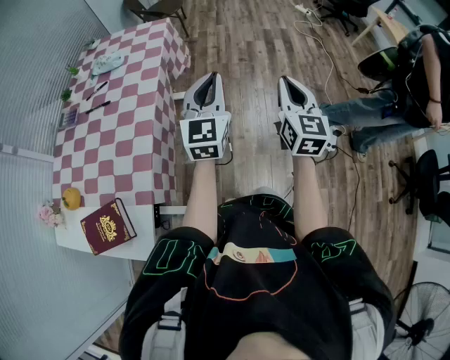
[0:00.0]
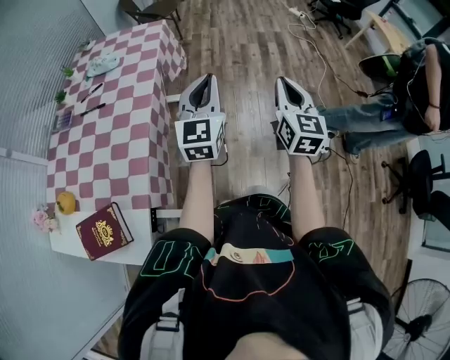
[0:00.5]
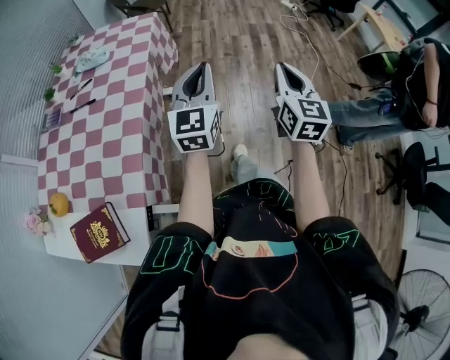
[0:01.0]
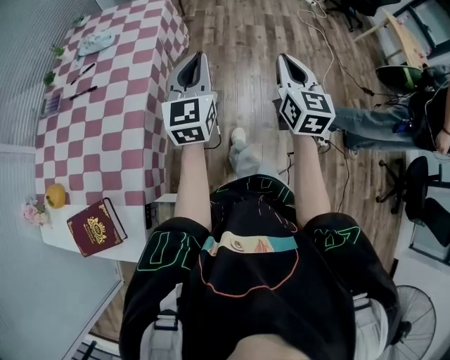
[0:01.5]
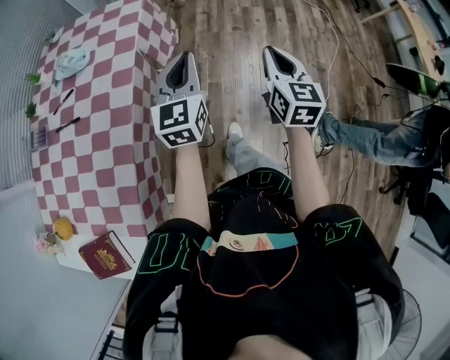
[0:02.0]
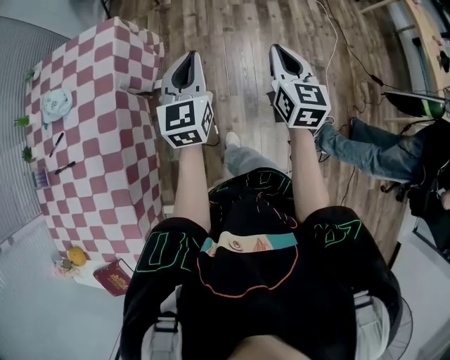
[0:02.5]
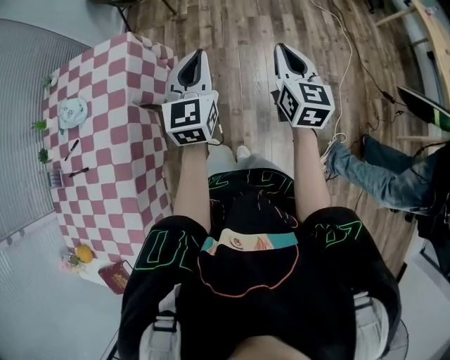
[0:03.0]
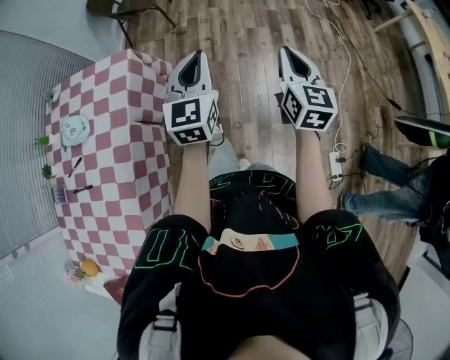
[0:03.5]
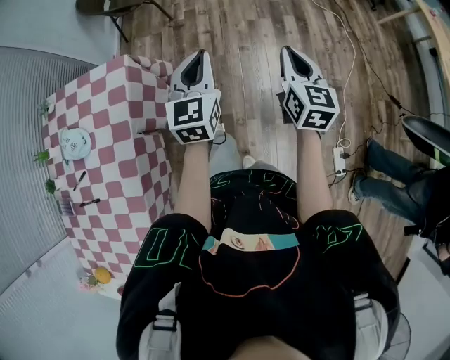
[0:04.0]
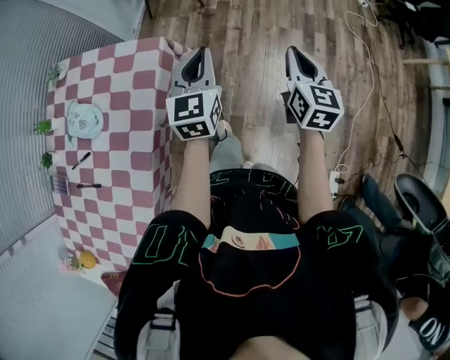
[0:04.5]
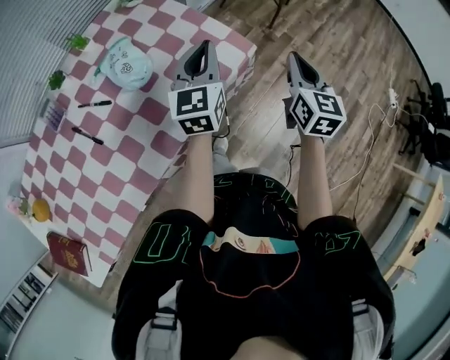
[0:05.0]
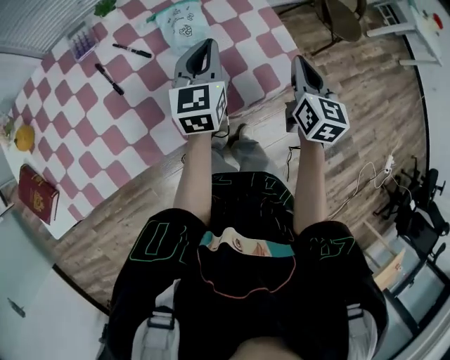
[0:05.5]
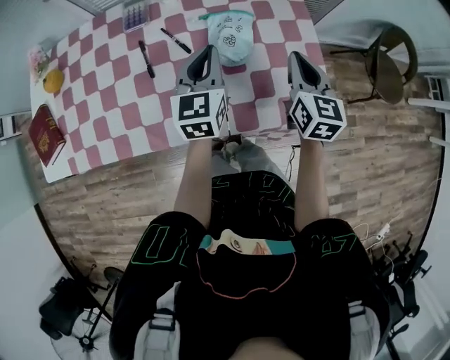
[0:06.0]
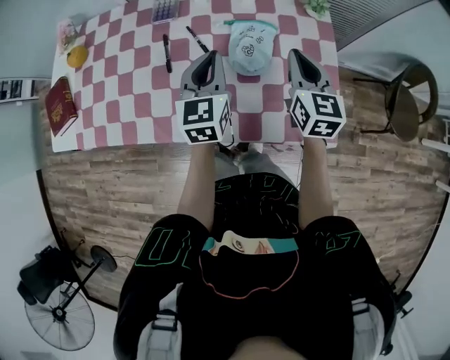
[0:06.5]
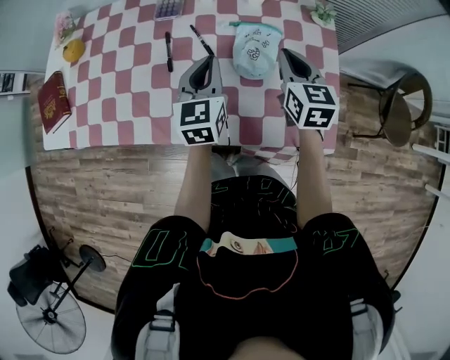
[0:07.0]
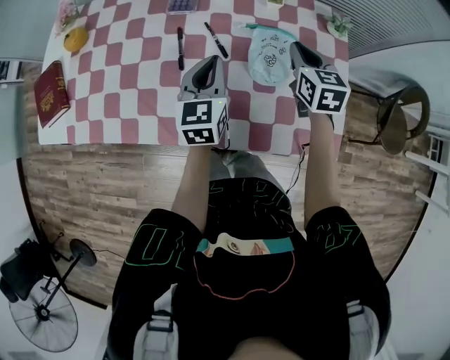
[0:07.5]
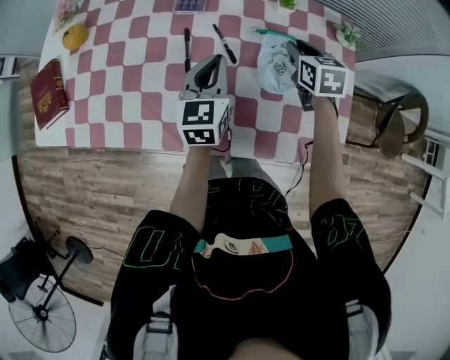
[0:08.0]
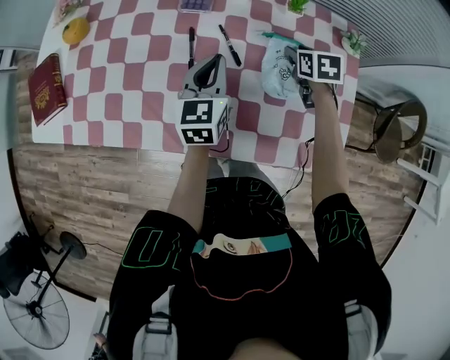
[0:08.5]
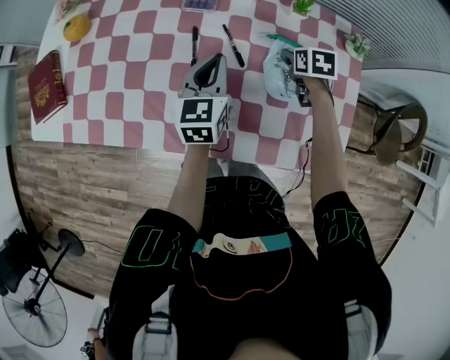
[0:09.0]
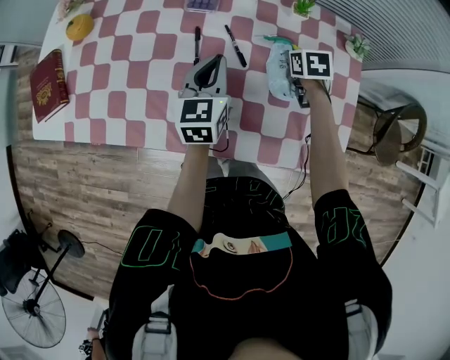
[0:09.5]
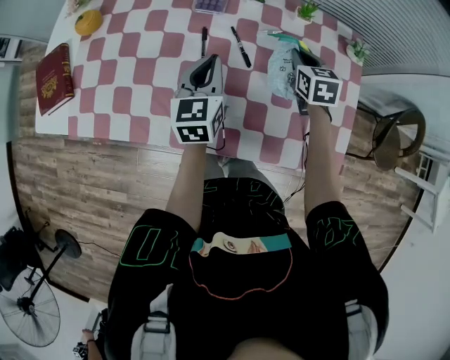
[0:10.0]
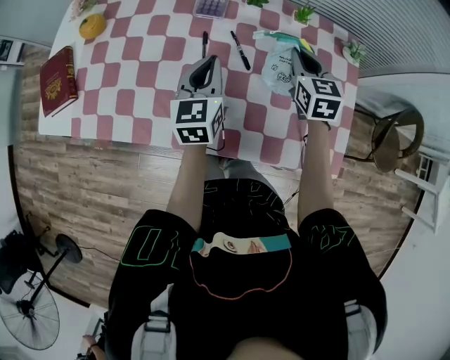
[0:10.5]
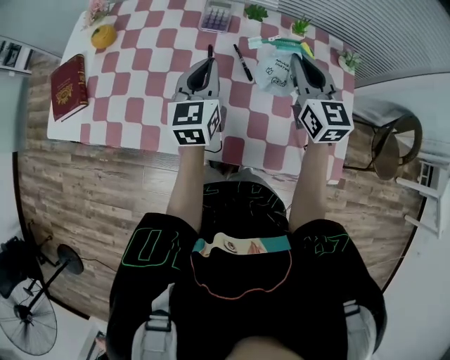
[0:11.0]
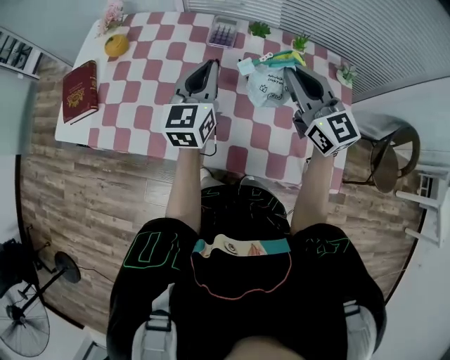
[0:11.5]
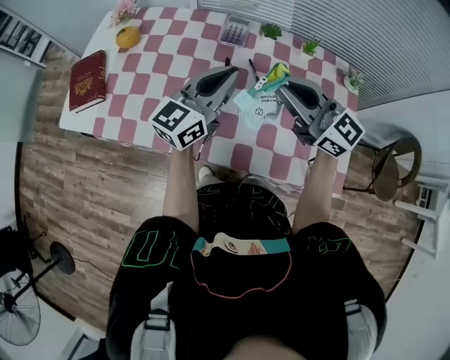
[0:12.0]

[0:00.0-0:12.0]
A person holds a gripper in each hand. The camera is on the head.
0:00.0 to 0:02.0: The right gripper goes roughly 20 cm forward, while the left gripper heads forward and downward, covering about 20 cm.
0:02.0 to 0:04.0: Both grippers travel together forward, approximately 30 cm.
0:04.0 to 0:06.0: The two grippers travel together, some 60 cm. The left gripper rotates about 80 degrees; the right gripper turns by roughly 80 degrees.
0:06.0 to 0:08.0: The right gripper shifts about 20 cm forward, to the left and downward, and swivels some 30 degrees. Meanwhile the left gripper moves to the left, some 10 cm.
0:08.0 to 0:10.0: The left gripper moves to the left, about 5 cm. Meanwhile the right gripper moves roughly 10 cm downward and comes back, and opens, then closes again.
0:10.0 to 0:12.0: The right gripper travels upward, to the left and backward by roughly 30 cm, and angles its fingers upward, by roughly 40 degrees. The left gripper is displaced upward by roughly 15 cm, and swivels roughly 40 degrees.

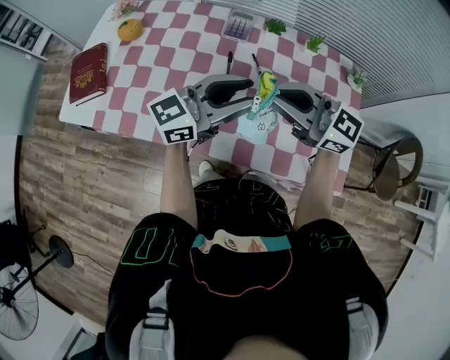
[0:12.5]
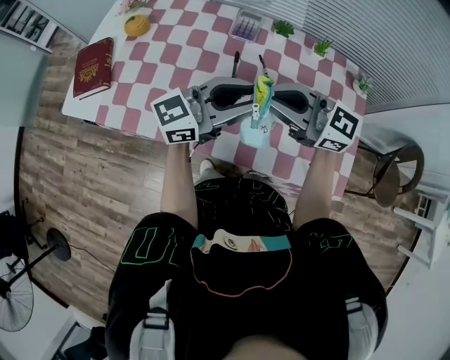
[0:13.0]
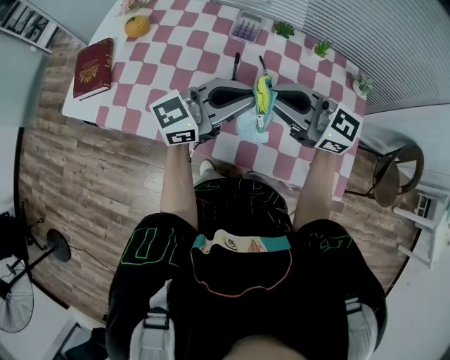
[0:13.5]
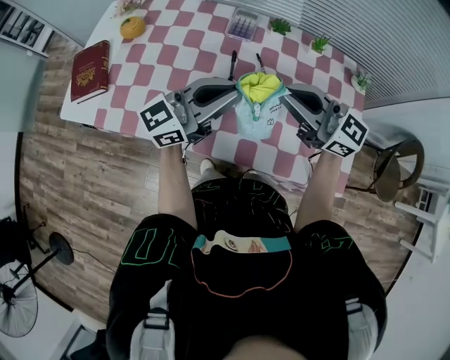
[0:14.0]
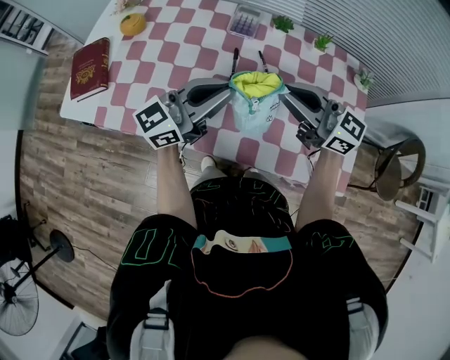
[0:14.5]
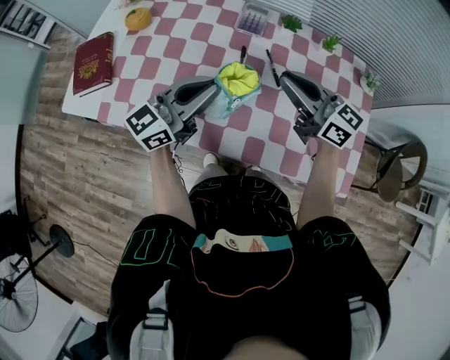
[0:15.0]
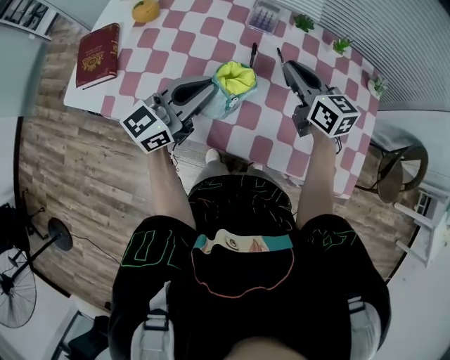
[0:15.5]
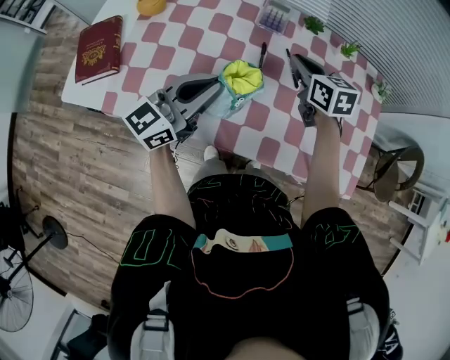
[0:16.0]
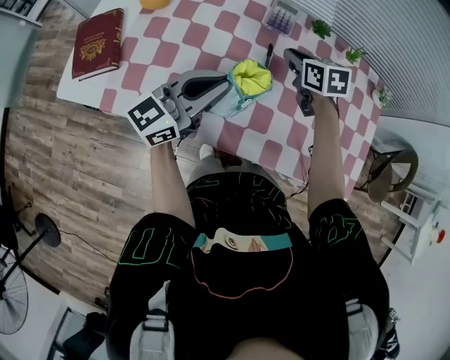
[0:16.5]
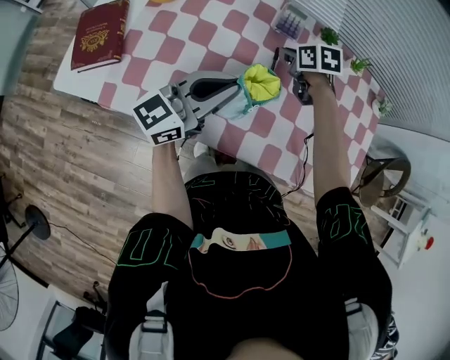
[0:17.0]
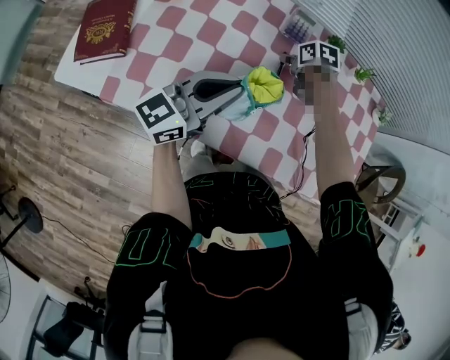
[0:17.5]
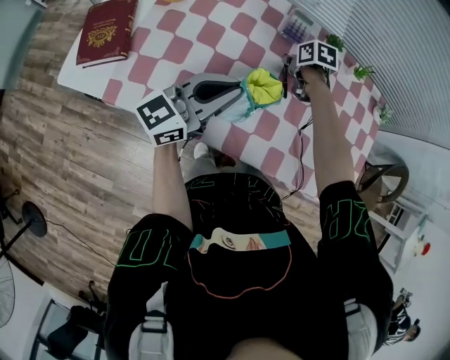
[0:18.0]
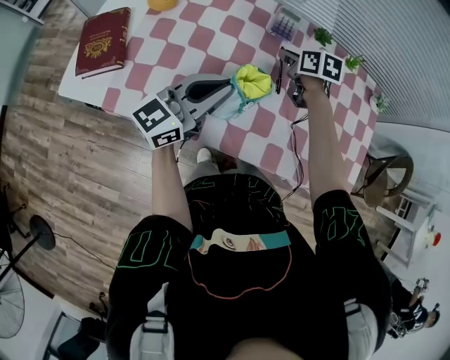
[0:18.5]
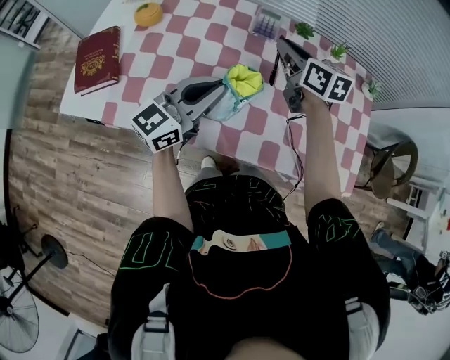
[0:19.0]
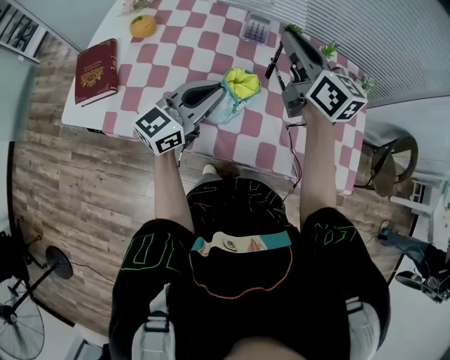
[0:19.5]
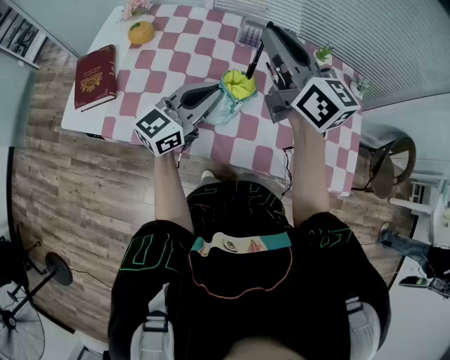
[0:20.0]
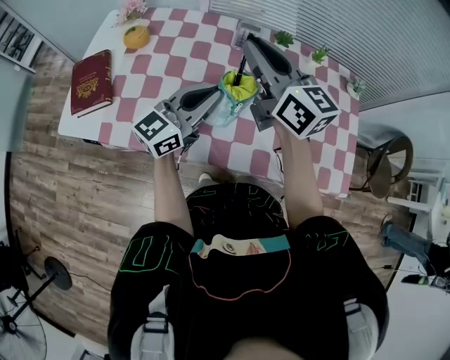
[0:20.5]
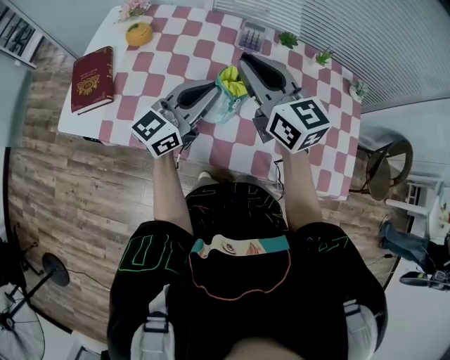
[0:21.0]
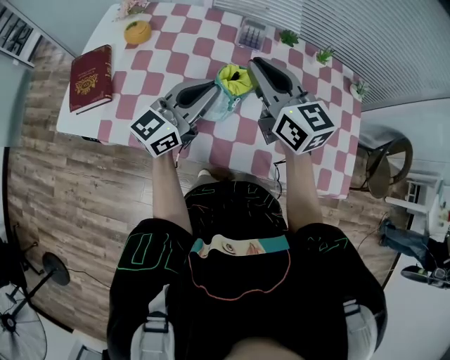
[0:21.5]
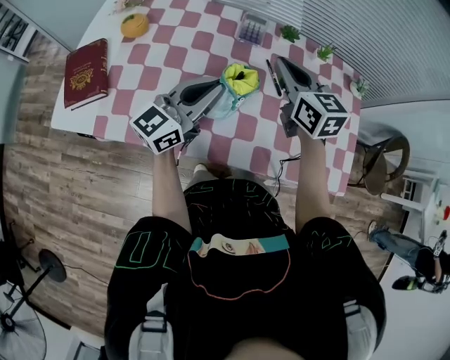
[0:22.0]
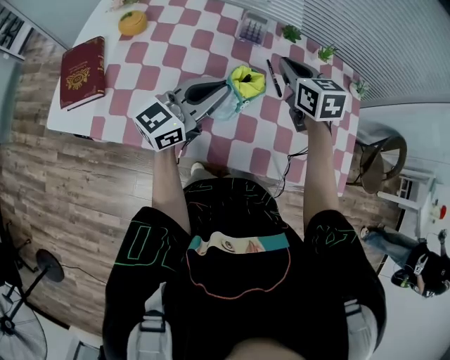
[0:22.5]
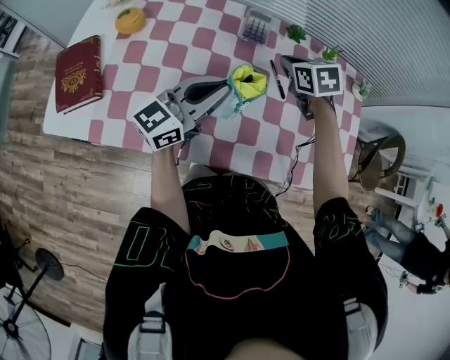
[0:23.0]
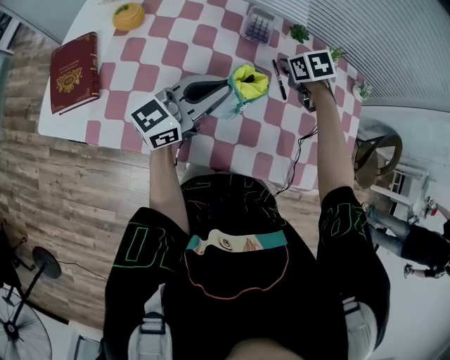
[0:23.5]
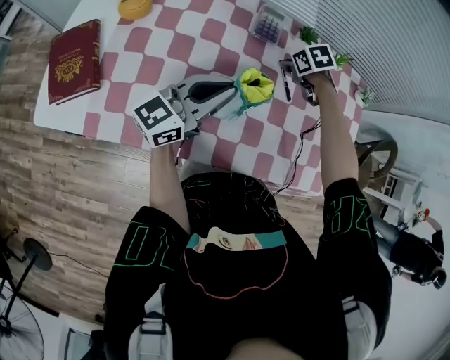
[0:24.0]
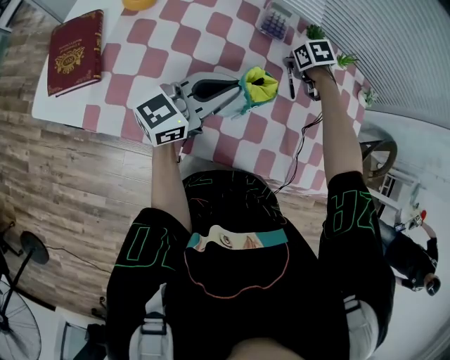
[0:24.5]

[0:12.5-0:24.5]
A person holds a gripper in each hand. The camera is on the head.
0:12.5 to 0:14.5: The left gripper moves some 5 cm, and closes its fingers.
0:14.5 to 0:16.5: The left gripper is displaced to the left by approximately 10 cm; the right gripper travels forward, downward and to the left by approximately 25 cm, and points its fingers approximately 50 degrees further downward.
0:16.5 to 0:18.5: The right gripper reaches some 10 cm downward, then returns.
0:18.5 to 0:20.5: The right gripper goes some 25 cm upward and backward, and tips its fingers upward by some 50 degrees.
0:20.5 to 0:22.5: The right gripper shifts about 15 cm downward, to the right and forward, and tilts its fingers some 40 degrees downward.
0:22.5 to 0:24.5: The right gripper moves downward, about 20 cm, and tips its fingers downward by roughly 40 degrees.

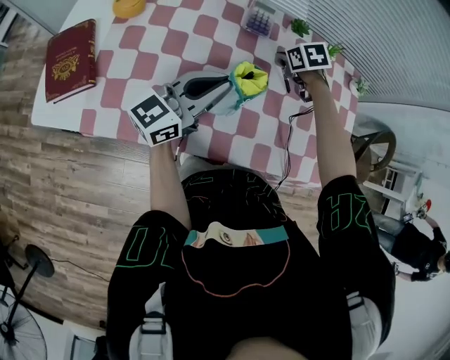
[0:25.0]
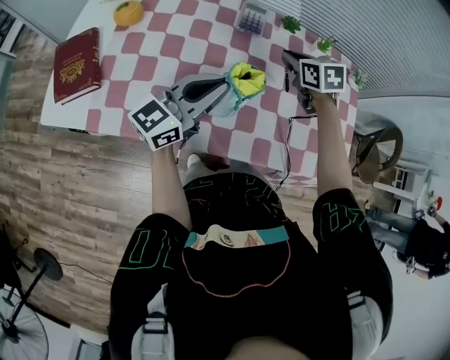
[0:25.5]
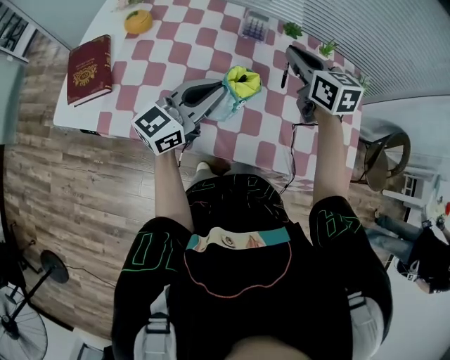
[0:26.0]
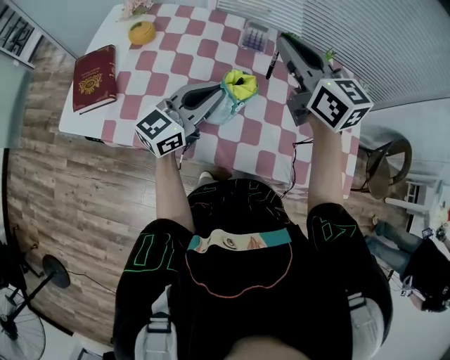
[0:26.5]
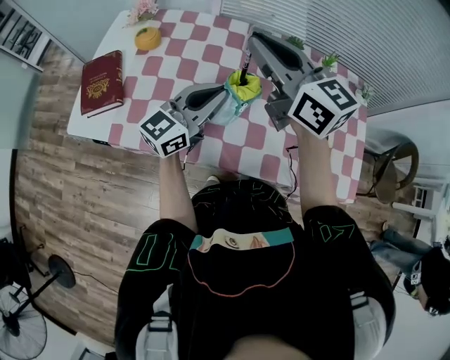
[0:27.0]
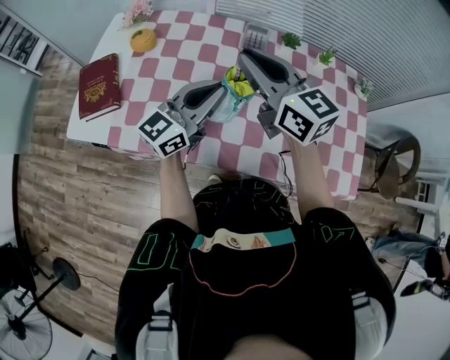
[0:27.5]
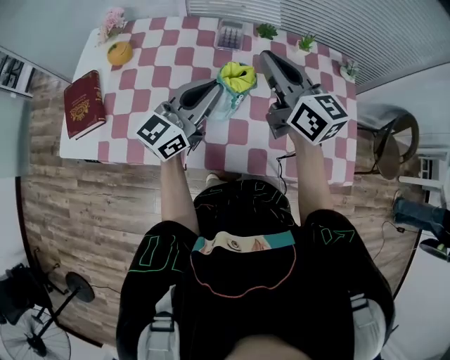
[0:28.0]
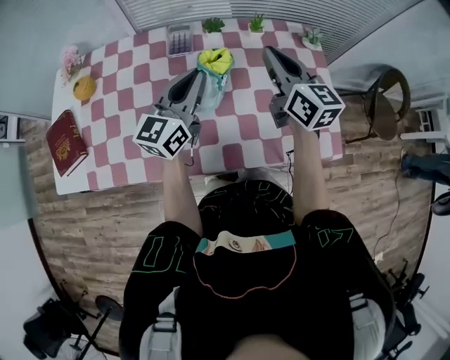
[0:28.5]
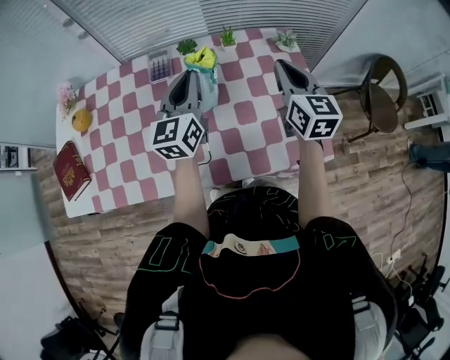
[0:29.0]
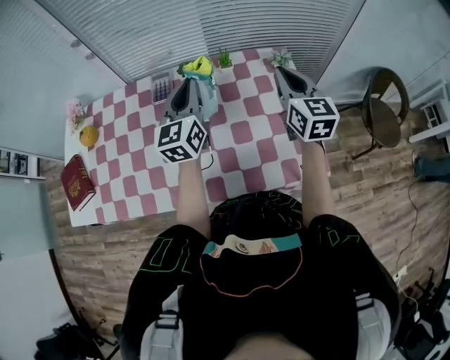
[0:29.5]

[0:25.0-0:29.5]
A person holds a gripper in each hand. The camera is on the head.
0:25.0 to 0:27.0: The right gripper shifts about 35 cm upward and backward, and tips its fingers upward by approximately 70 degrees.
0:27.0 to 0:29.5: The right gripper goes some 40 cm to the right, and changes its angle by approximately 40 degrees. The left gripper is displaced to the right and forward by approximately 25 cm, and swivels some 20 degrees.
